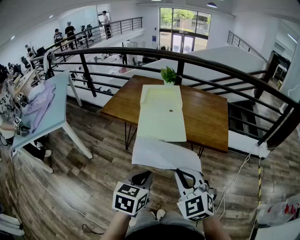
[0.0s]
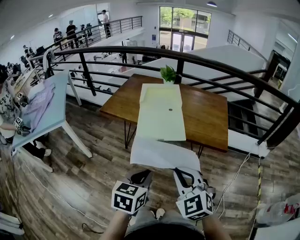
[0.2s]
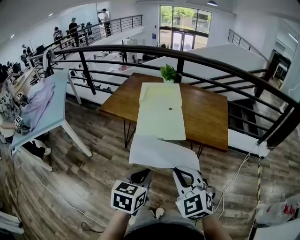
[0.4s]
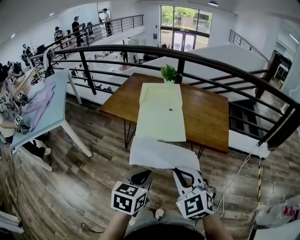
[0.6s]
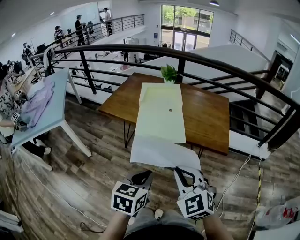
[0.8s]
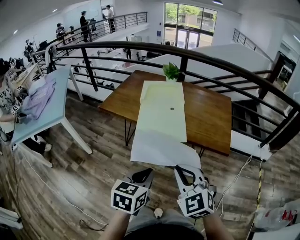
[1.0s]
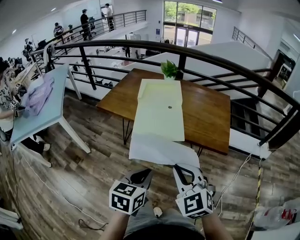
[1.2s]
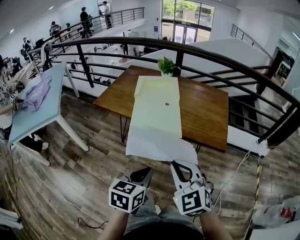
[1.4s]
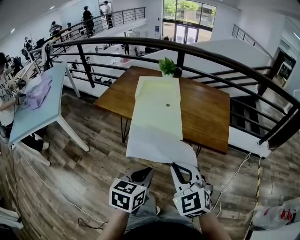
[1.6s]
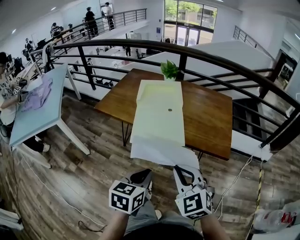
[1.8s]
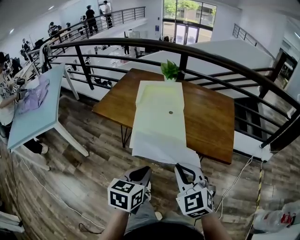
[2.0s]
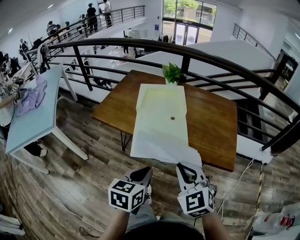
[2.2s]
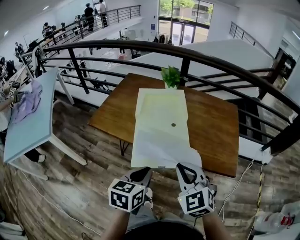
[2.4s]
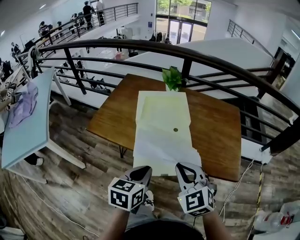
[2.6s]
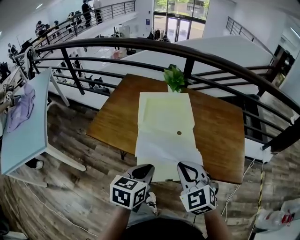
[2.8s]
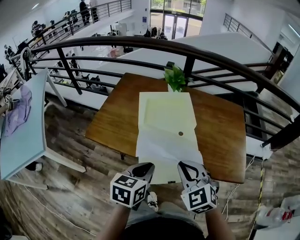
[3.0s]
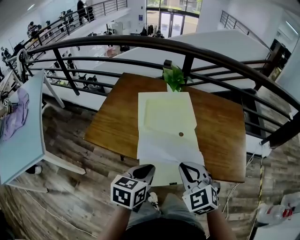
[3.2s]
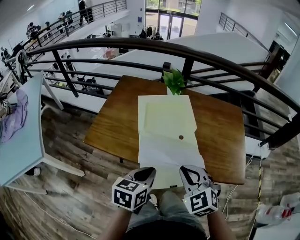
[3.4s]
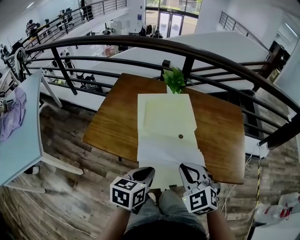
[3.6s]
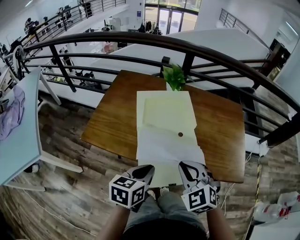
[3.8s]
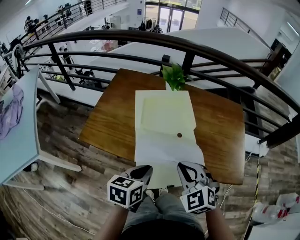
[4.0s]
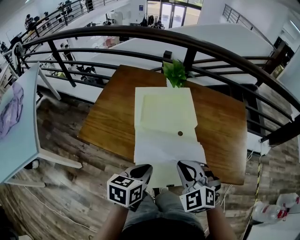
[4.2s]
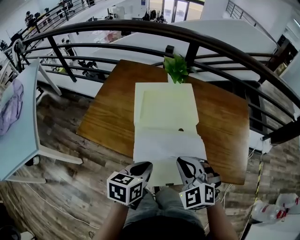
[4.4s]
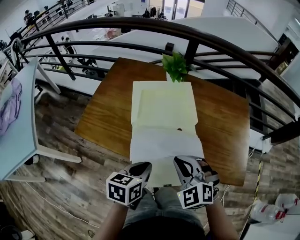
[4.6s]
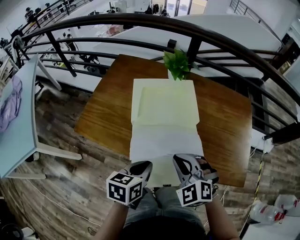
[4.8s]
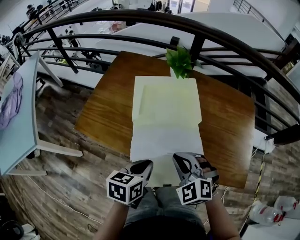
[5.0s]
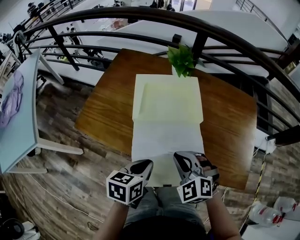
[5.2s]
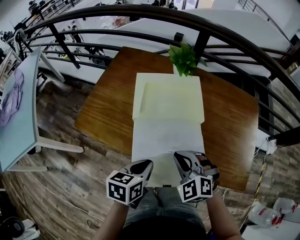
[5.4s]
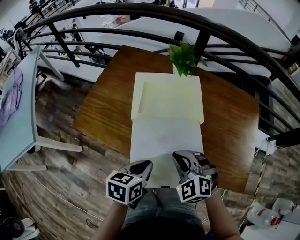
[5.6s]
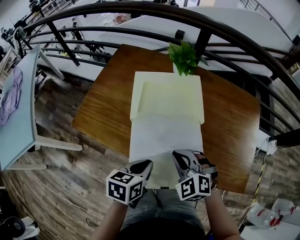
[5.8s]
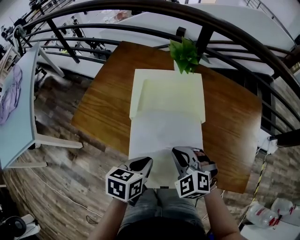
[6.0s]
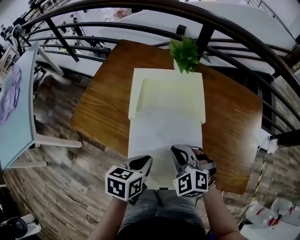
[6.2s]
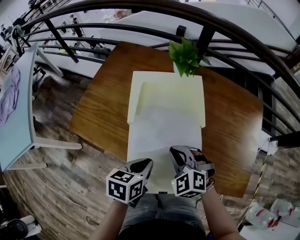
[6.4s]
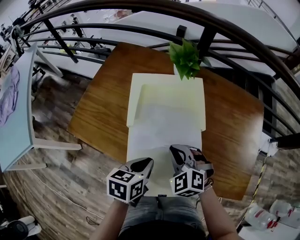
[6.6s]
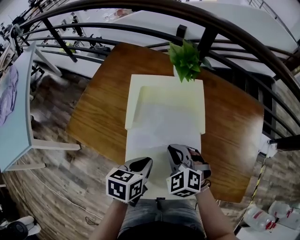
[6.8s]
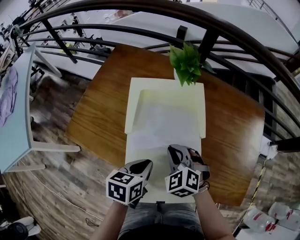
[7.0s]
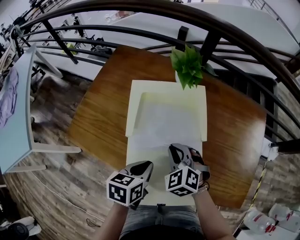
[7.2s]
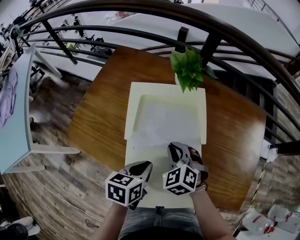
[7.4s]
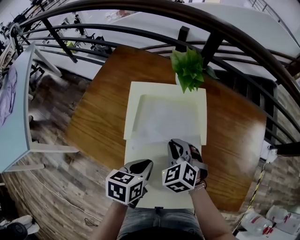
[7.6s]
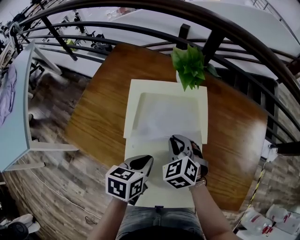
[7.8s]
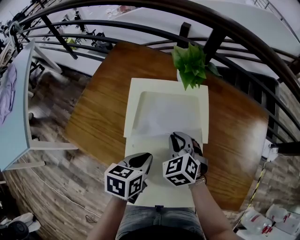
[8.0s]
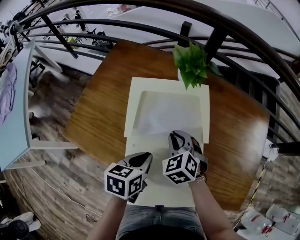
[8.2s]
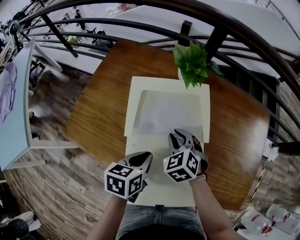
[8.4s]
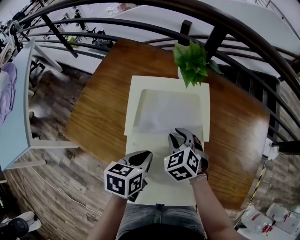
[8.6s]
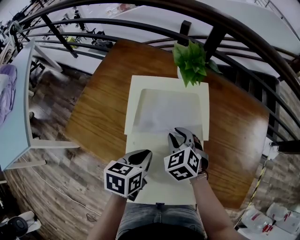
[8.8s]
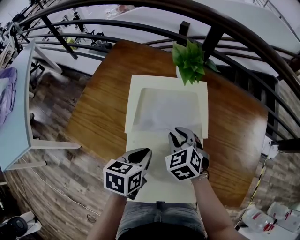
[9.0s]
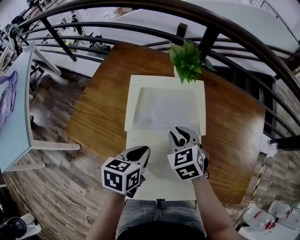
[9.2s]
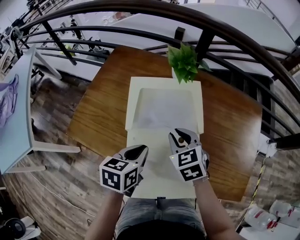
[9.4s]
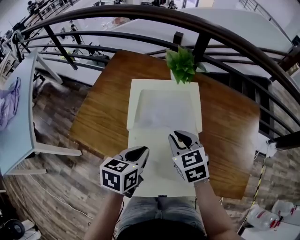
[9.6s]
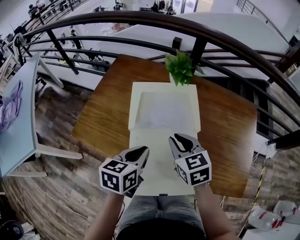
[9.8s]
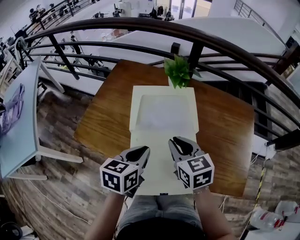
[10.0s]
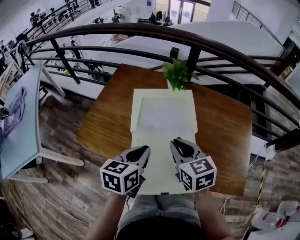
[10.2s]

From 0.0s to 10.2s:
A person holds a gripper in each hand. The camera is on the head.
From 0.0s to 1.4s: The grippers stay close to where they were, moving slightly.
From 1.4s to 3.0s: Both grippers travel together forward, some 25 cm.
From 3.0s to 4.4s: The left gripper changes place by approximately 5 cm. Meanwhile the right gripper ends up some 5 cm from where it was.
From 4.4s to 5.8s: The right gripper travels downward by approximately 5 cm.
From 5.8s to 7.2s: The two grippers go approximately 10 cm forward.
From 7.2s to 8.8s: The right gripper is displaced forward by about 5 cm.
From 8.8s to 10.2s: The right gripper shifts some 15 cm upward and backward, and changes its angle by some 40 degrees, while the left gripper is displaced upward by approximately 10 cm.

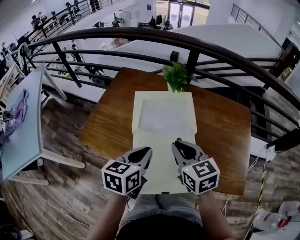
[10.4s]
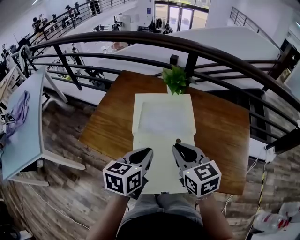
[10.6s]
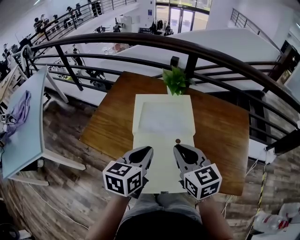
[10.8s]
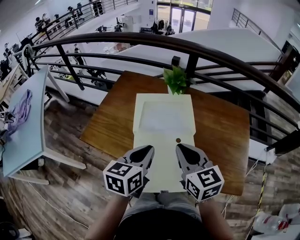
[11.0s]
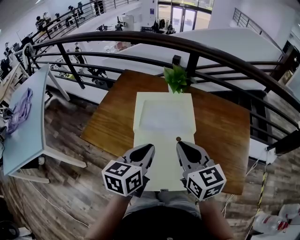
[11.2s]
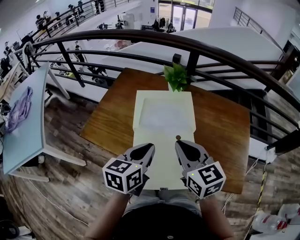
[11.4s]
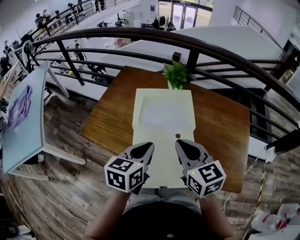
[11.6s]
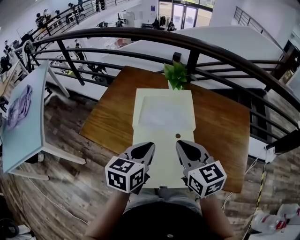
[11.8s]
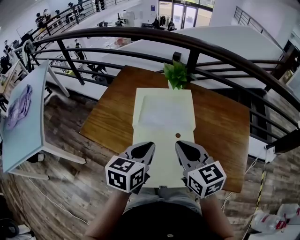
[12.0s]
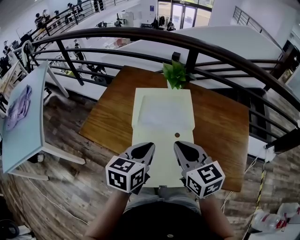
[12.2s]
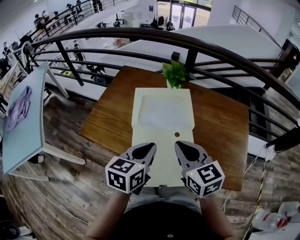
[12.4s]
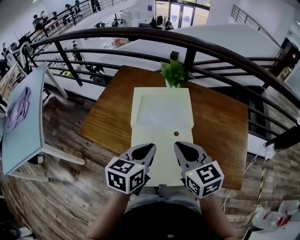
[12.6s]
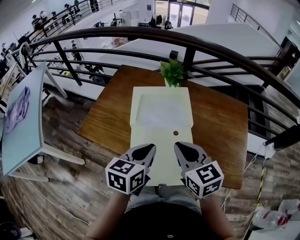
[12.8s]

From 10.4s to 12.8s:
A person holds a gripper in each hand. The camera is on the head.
From 10.4s to 12.8s: The grippers stay close to where they were, moving slightly.

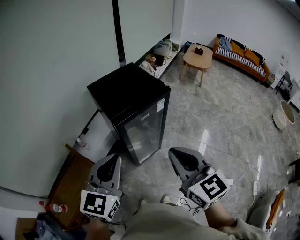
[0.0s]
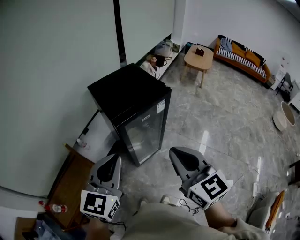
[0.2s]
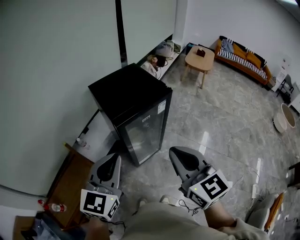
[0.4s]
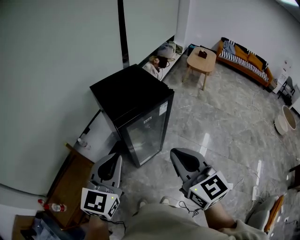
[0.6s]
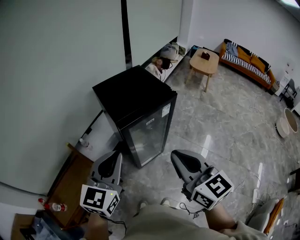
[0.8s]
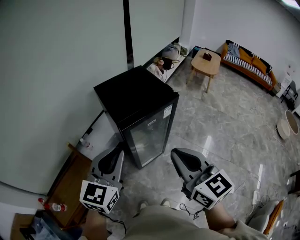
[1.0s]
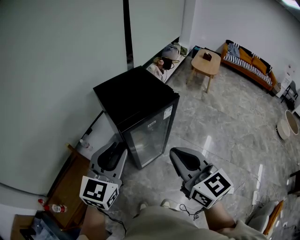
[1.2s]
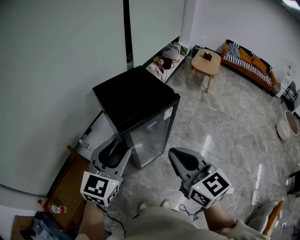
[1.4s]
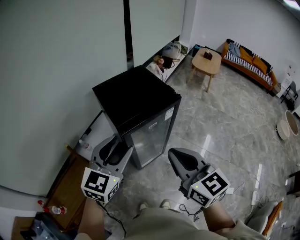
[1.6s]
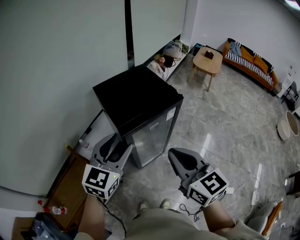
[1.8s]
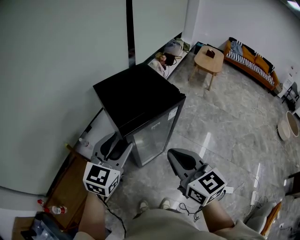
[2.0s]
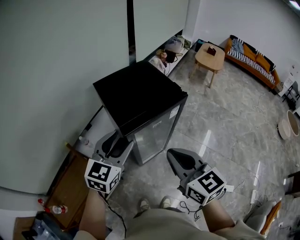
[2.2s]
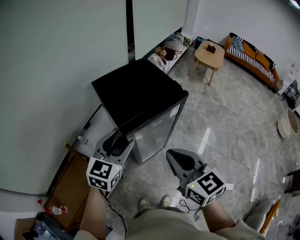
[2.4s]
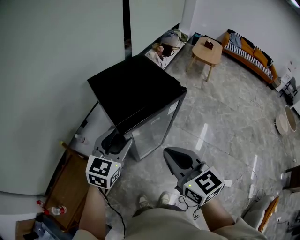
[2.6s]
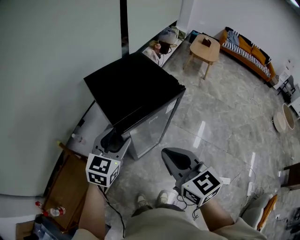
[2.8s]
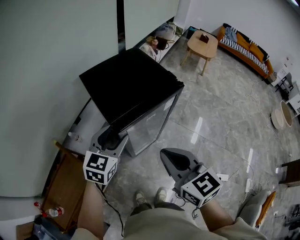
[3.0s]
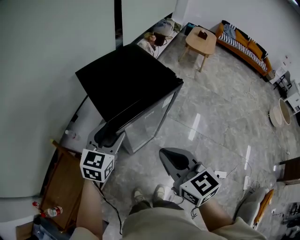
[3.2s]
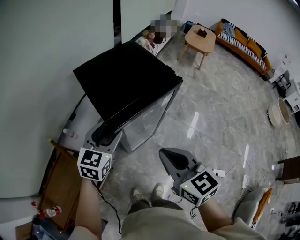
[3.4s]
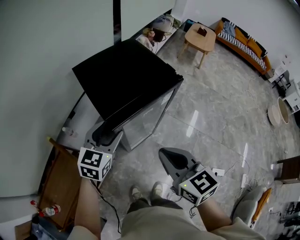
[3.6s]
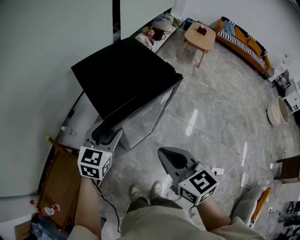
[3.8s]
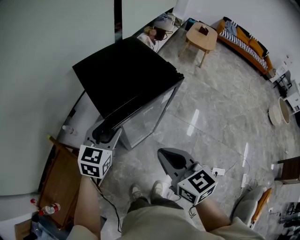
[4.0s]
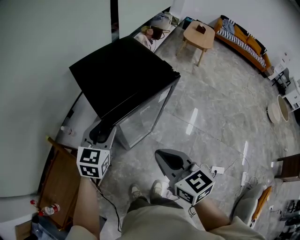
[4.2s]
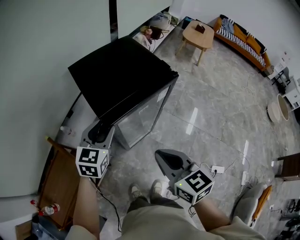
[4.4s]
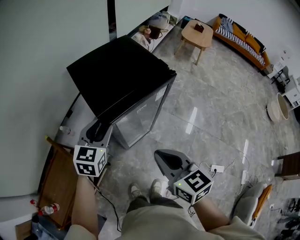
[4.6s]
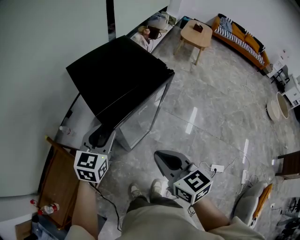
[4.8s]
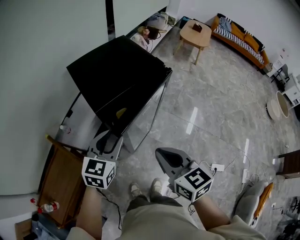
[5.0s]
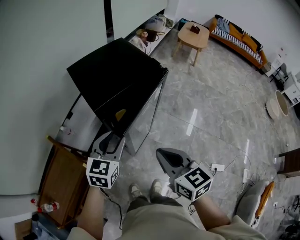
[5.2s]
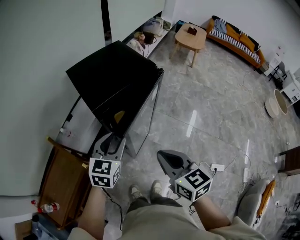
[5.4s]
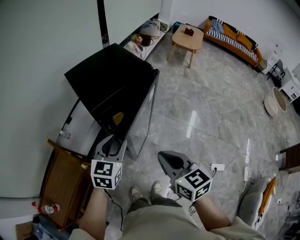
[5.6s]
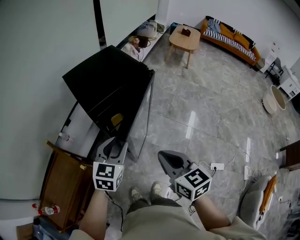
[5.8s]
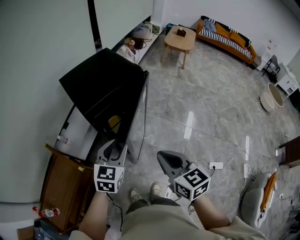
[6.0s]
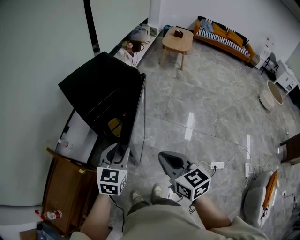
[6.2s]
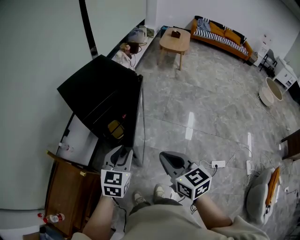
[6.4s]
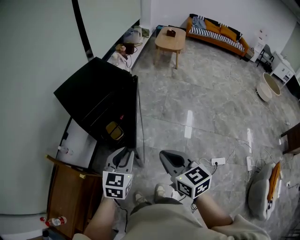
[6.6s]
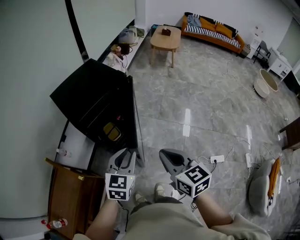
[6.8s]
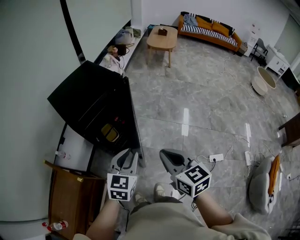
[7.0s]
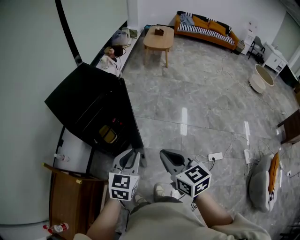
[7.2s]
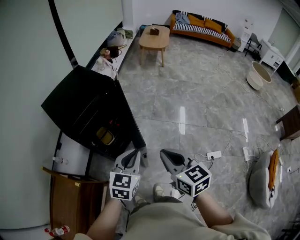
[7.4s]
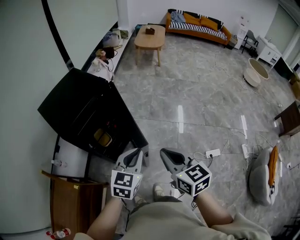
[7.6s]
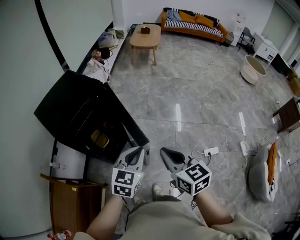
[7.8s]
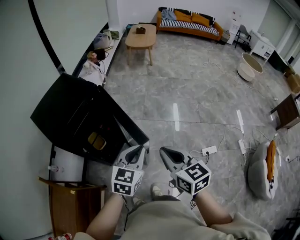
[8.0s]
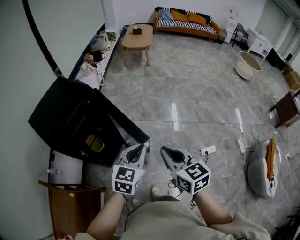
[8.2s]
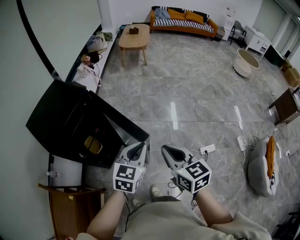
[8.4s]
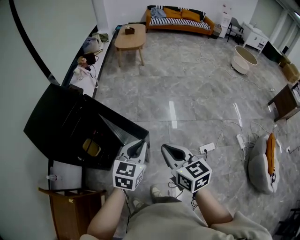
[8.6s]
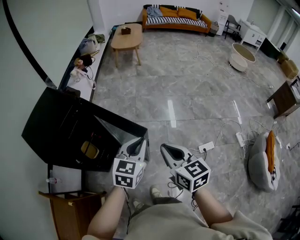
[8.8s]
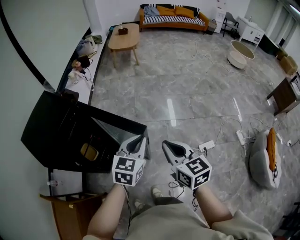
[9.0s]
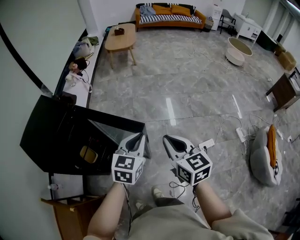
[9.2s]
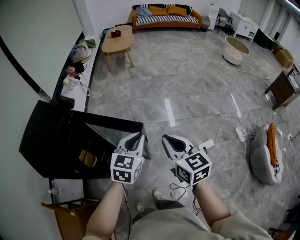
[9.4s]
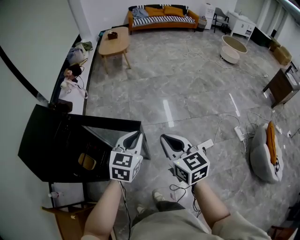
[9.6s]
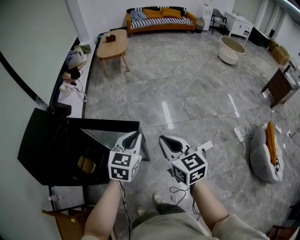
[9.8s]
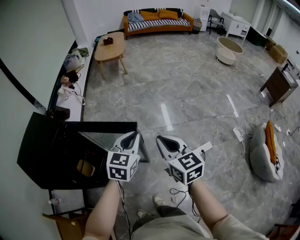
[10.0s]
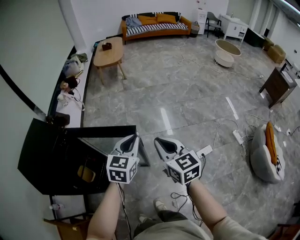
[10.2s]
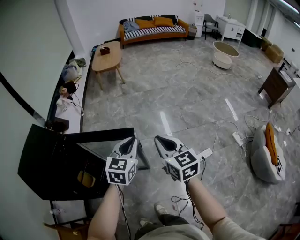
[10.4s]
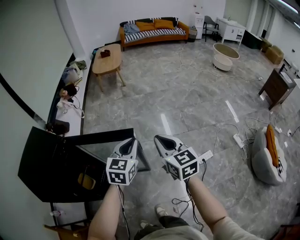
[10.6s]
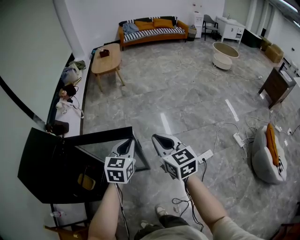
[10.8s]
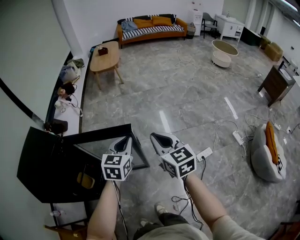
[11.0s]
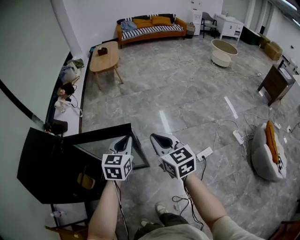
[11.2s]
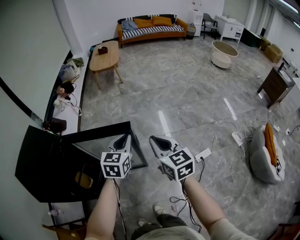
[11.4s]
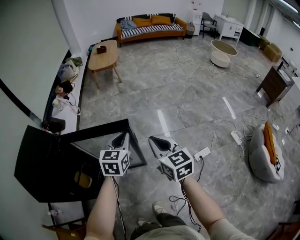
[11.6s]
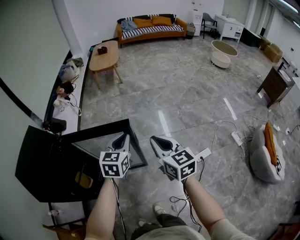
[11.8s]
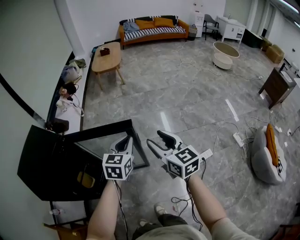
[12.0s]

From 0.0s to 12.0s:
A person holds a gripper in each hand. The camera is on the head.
From 0.0s to 1.6s: The two grippers go about 10 cm forward. The left gripper opens.
From 1.6s to 3.0s: The right gripper moves downward, about 10 cm; the left gripper goes approximately 15 cm downward and forward.
From 3.0s to 4.4s: The right gripper goes some 5 cm downward.
From 4.4s to 6.0s: Both grippers travel together backward and to the right, some 15 cm.
From 6.0s to 7.6s: The left gripper shifts approximately 20 cm to the right, and closes its fingers; the right gripper heads to the right, covering approximately 10 cm.
From 7.6s to 9.0s: The two grippers go some 15 cm to the right and forward.
From 9.0s to 10.4s: The left gripper is displaced forward by roughly 10 cm, while the right gripper travels forward and to the right by about 15 cm.
From 10.4s to 12.0s: The right gripper opens its fingers.
